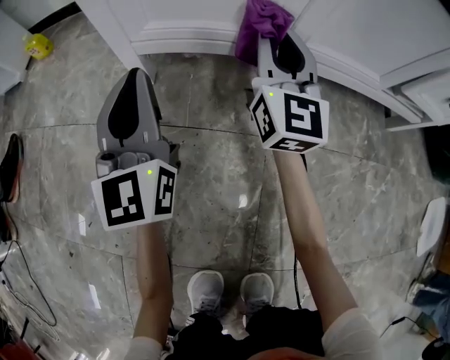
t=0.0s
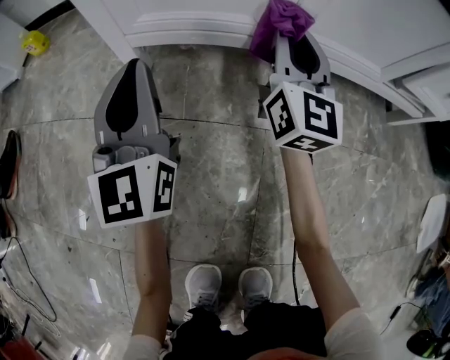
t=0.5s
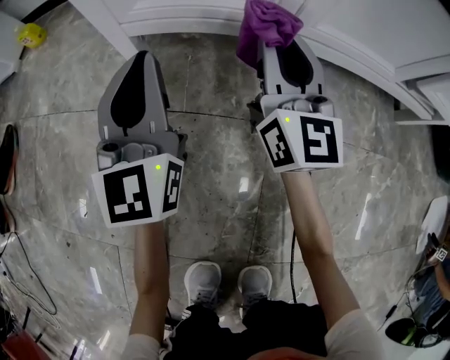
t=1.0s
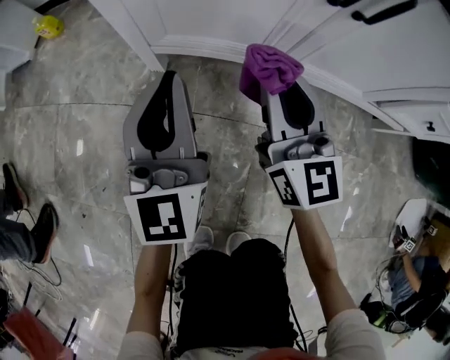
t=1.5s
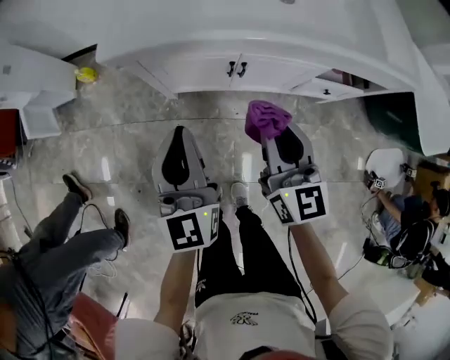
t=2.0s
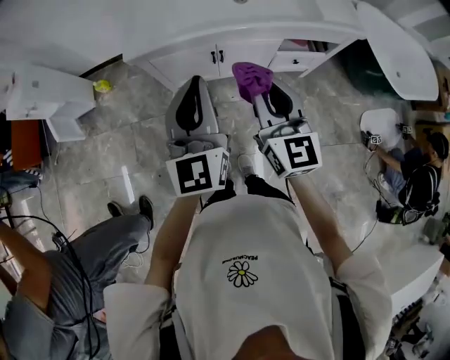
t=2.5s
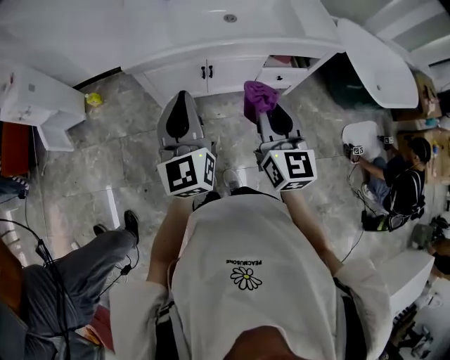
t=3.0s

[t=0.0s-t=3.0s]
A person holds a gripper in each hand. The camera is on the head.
t=0.0s to t=1.5s: The right gripper shifts roughly 10 cm upward and backward, while the left gripper goes approximately 10 cm upward.
t=1.5s to t=3.0s: The right gripper shifts roughly 70 cm upward and backward, and rotates roughly 20 degrees. The left gripper shifts about 60 cm upward.

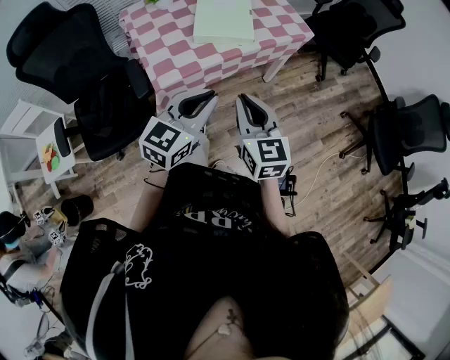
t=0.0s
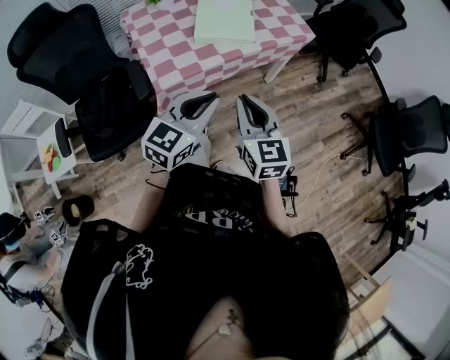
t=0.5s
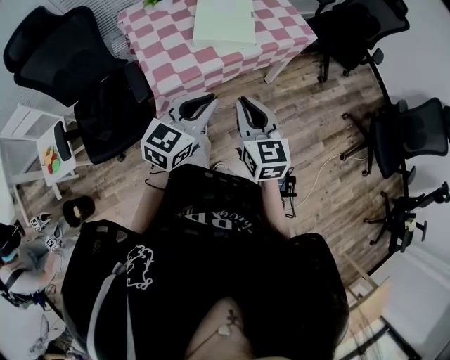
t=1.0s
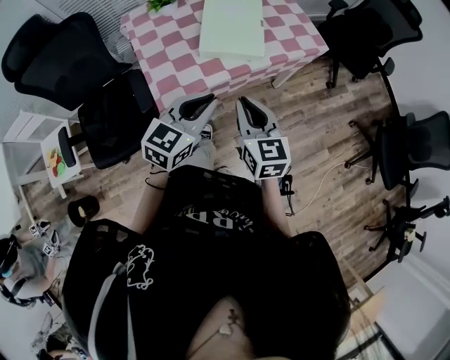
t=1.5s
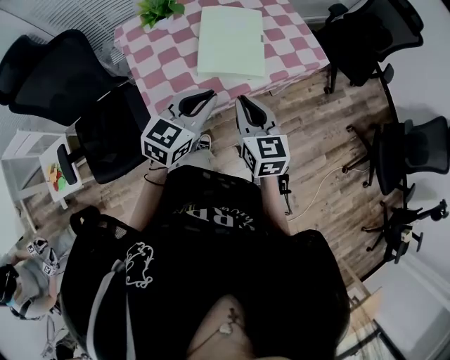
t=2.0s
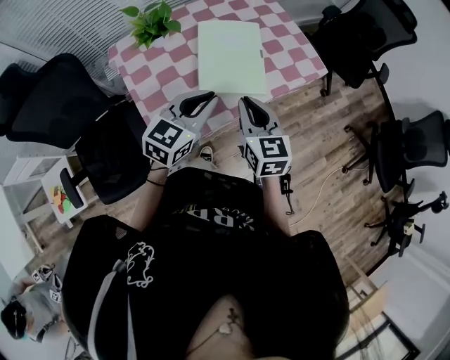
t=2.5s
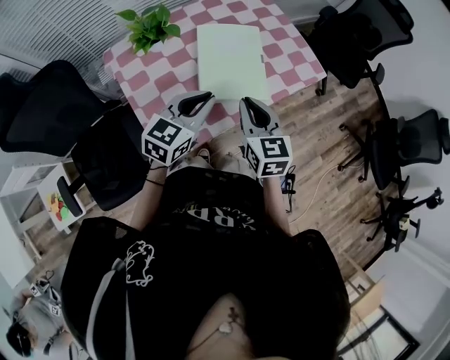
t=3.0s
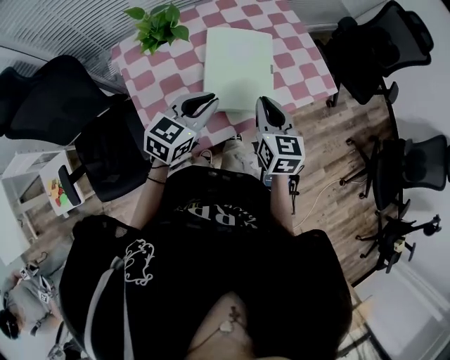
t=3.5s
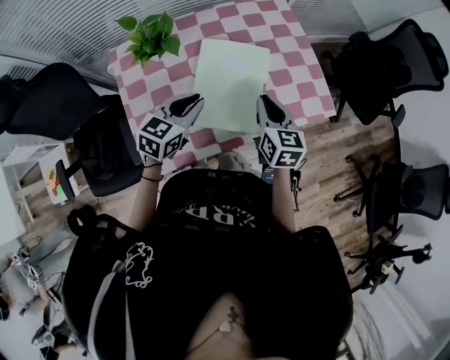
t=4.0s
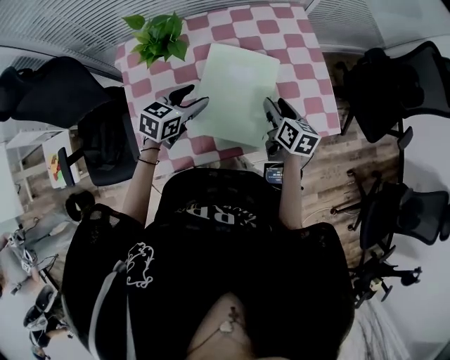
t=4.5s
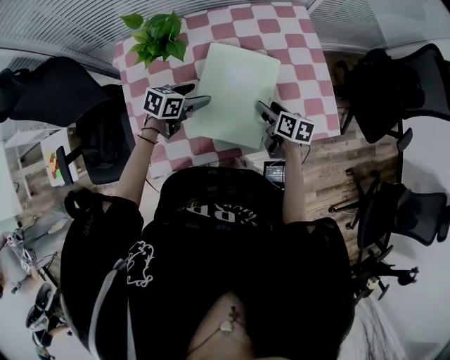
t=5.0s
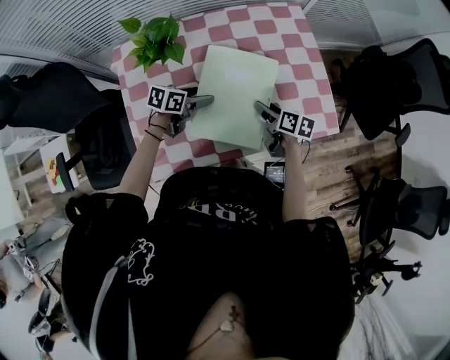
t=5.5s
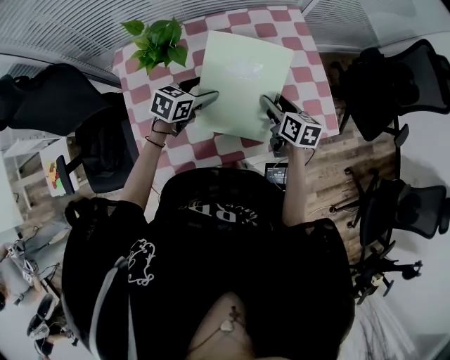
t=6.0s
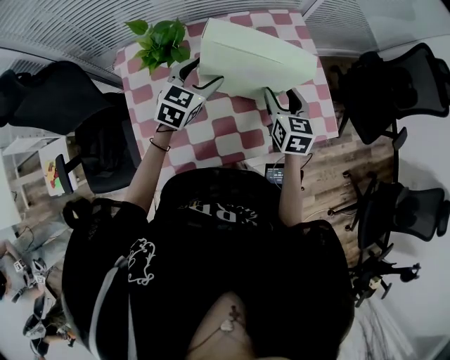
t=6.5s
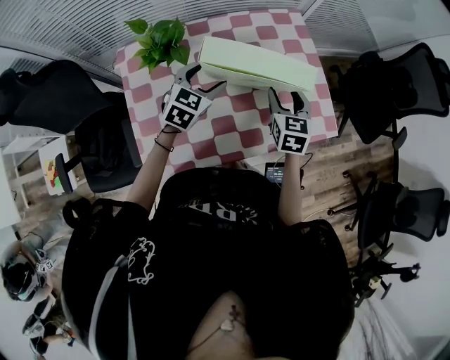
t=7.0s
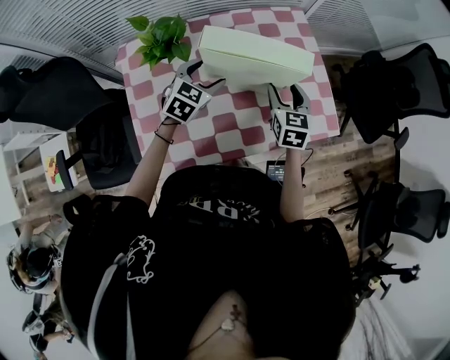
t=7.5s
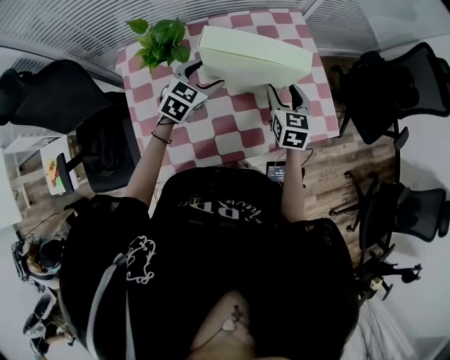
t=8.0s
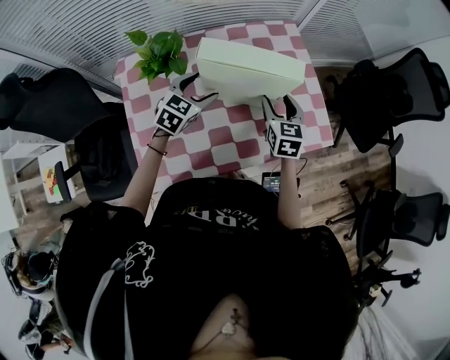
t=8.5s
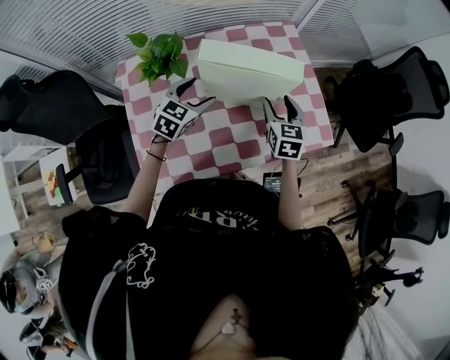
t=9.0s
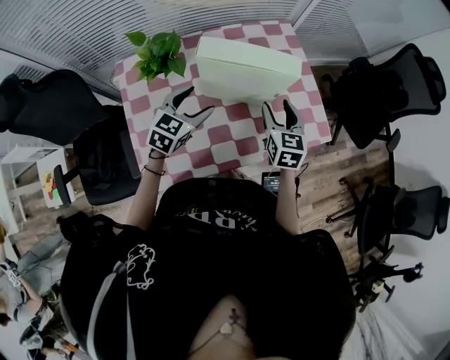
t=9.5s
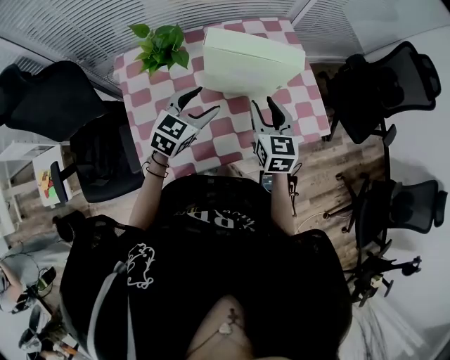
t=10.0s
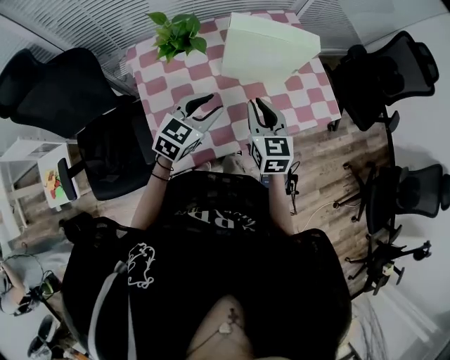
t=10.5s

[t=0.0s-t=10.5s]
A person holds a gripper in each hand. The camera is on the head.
t=0.0s to t=2.0s: The two grippers go about 20 cm forward.
t=2.0s to t=4.0s: The two grippers go some 25 cm forward.
t=4.0s to t=6.5s: Both grippers travel together forward, roughly 10 cm. The left gripper travels downward and back again, approximately 15 cm each way, and opens. Meanwhile the right gripper moves some 15 cm downward and comes back, and opens its fingers.
t=6.5s to t=8.5s: The grippers move only a little.
t=8.5s to t=10.5s: The left gripper is displaced backward by some 15 cm, and closes up. The right gripper shifts some 20 cm backward and to the left, and closes its fingers.

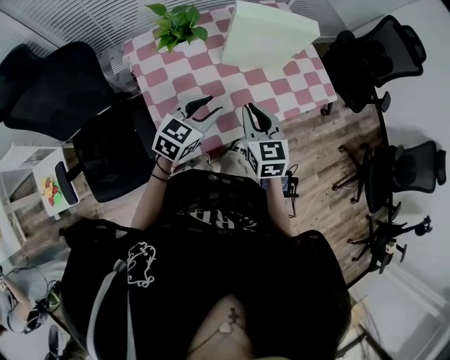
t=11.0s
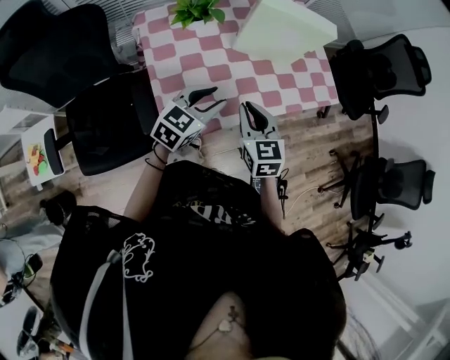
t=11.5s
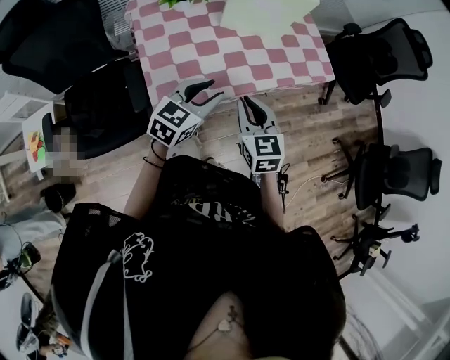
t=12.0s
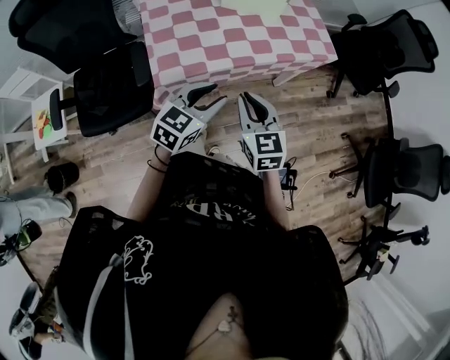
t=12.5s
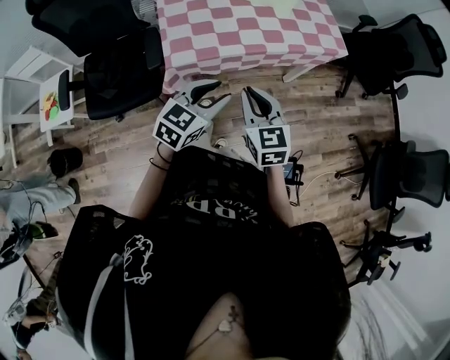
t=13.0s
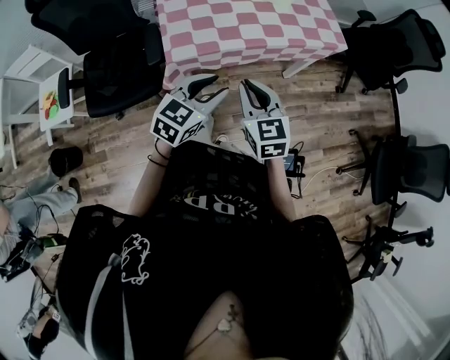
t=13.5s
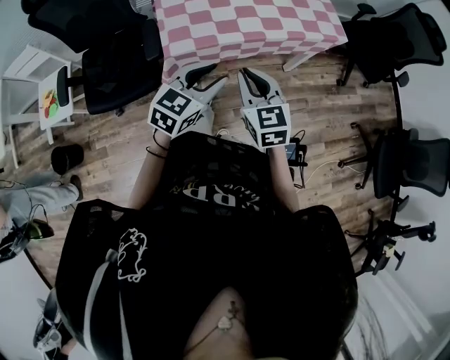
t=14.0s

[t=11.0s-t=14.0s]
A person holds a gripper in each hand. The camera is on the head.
t=11.0s to t=12.5s: Both grippers travel together backward and to the right, roughly 25 cm.
t=12.5s to t=14.0s: The left gripper moves roughly 5 cm; the right gripper moves some 5 cm.

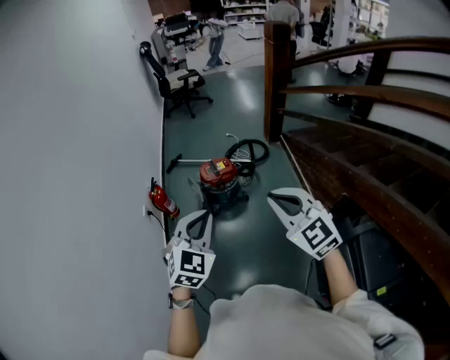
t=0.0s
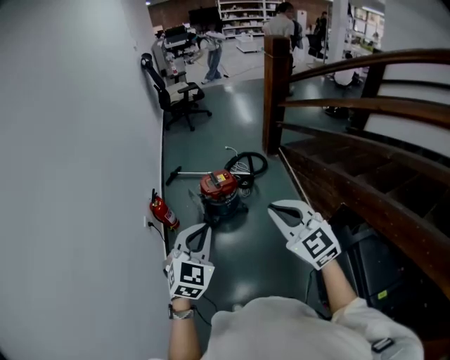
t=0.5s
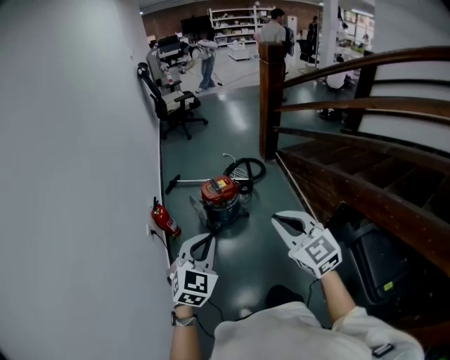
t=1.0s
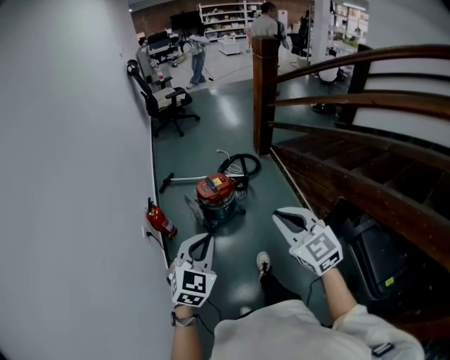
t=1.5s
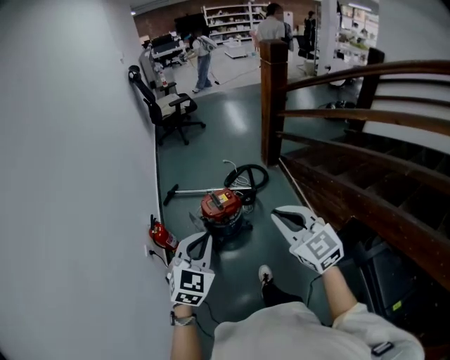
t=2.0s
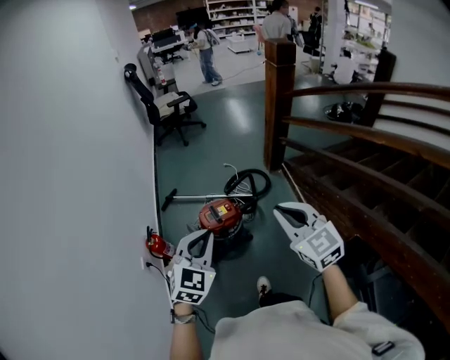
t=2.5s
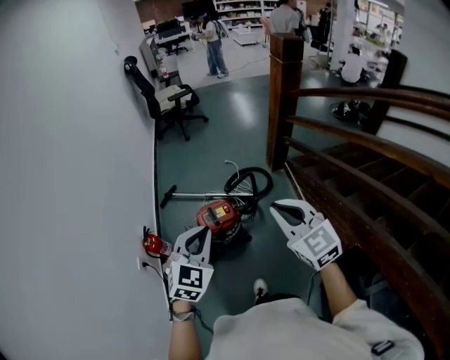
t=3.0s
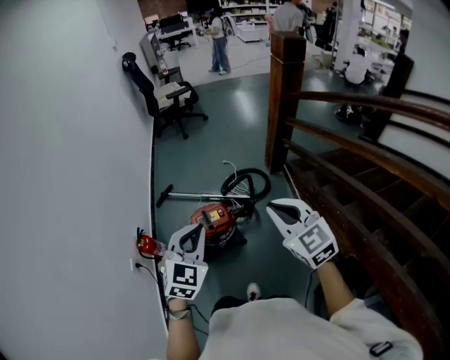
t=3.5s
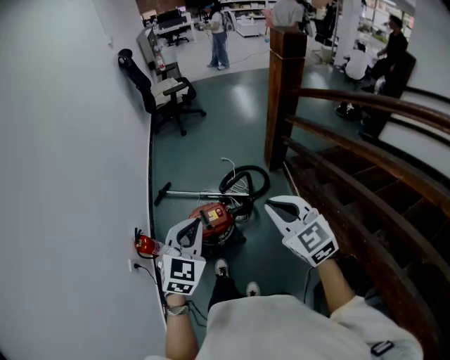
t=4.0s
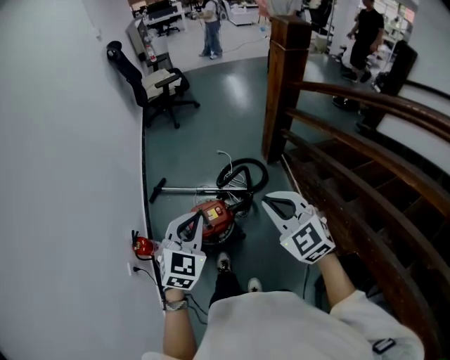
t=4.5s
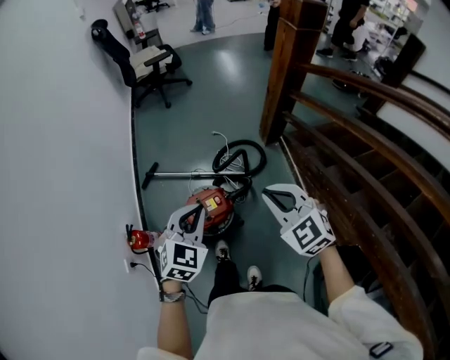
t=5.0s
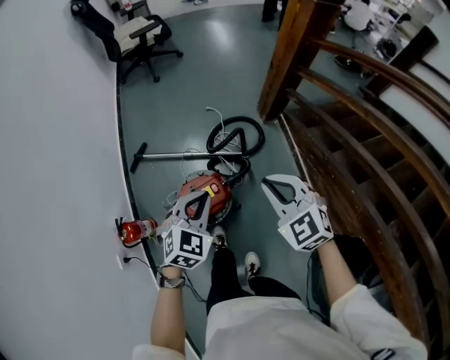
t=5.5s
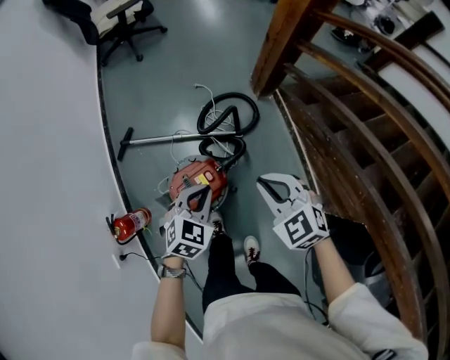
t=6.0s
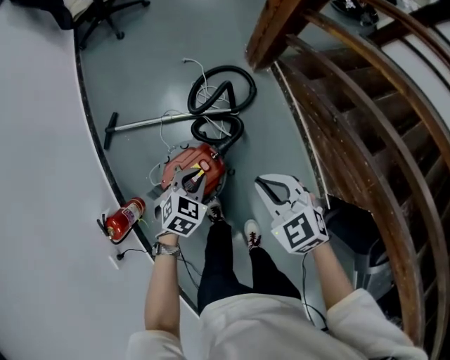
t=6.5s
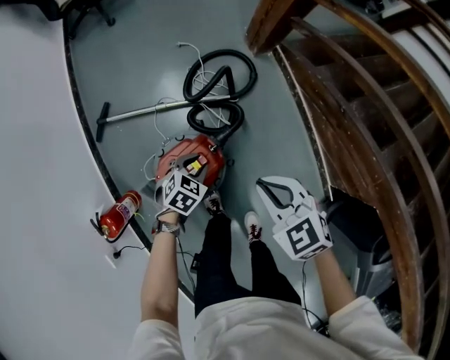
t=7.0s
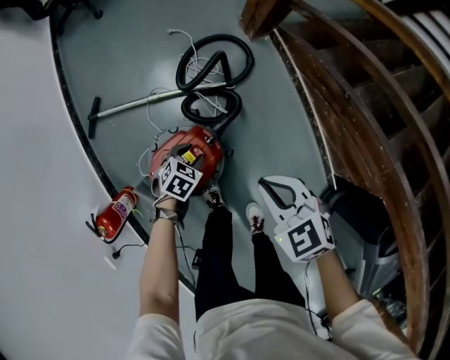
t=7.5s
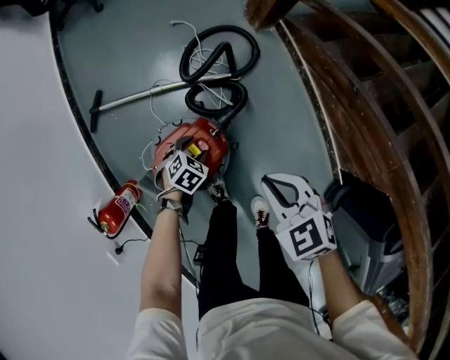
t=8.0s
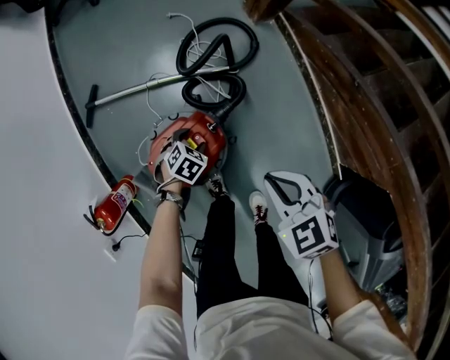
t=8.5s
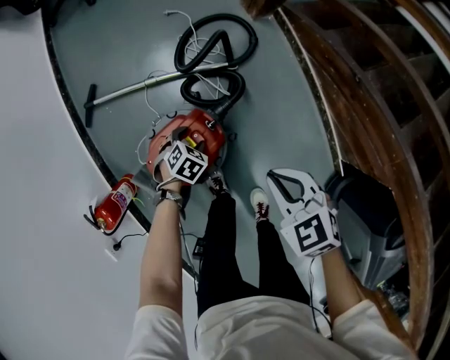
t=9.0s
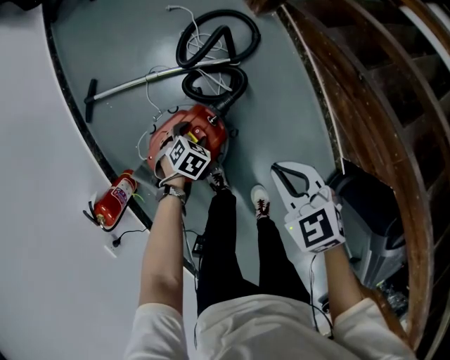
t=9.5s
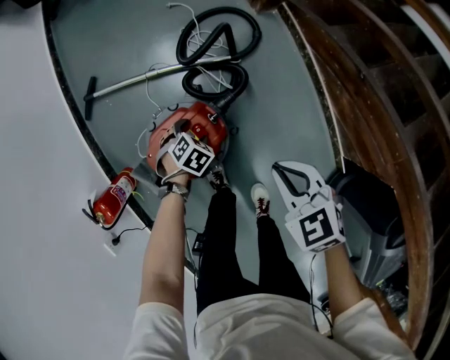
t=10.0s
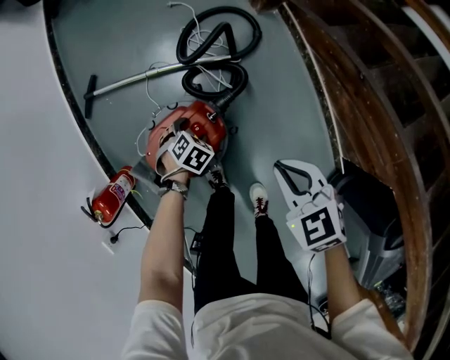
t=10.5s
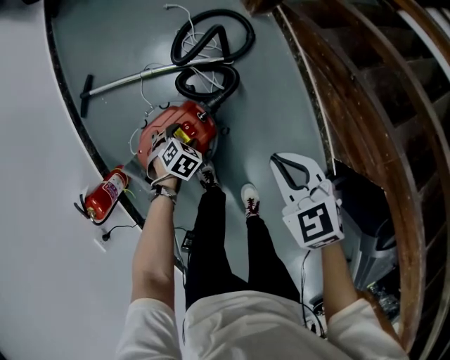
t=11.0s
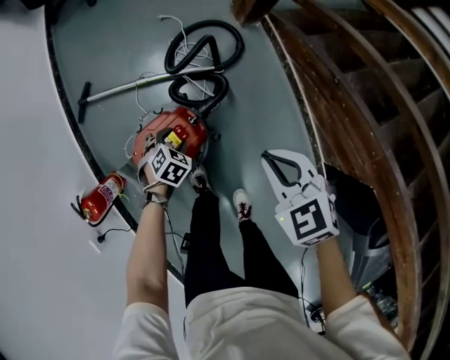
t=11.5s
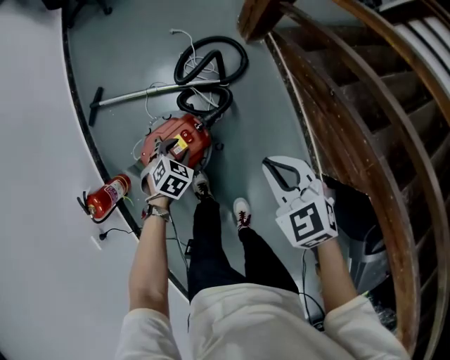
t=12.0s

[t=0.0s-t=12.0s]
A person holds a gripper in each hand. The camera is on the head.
t=0.0s to t=2.0s: The two grippers go approximately 10 cm forward.
t=2.0s to t=4.0s: The two grippers go about 30 cm forward and to the right.
t=4.0s to t=6.0s: Both grippers travel together downward and forward, roughly 35 cm. The left gripper turns by approximately 30 degrees, while the right gripper changes its angle by roughly 20 degrees.
t=6.0s to t=8.0s: The left gripper heads downward, covering approximately 35 cm, swivels approximately 30 degrees, and opens its fingers, while the right gripper heads downward, covering about 15 cm, and swivels approximately 20 degrees.
t=8.0s to t=10.0s: There are only small adjustments of the grippers.
t=10.0s to t=12.0s: The grippers both shift upward by approximately 10 cm. The left gripper closes.
